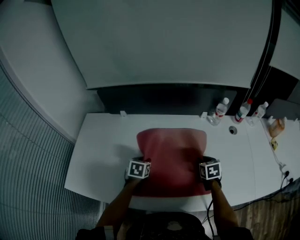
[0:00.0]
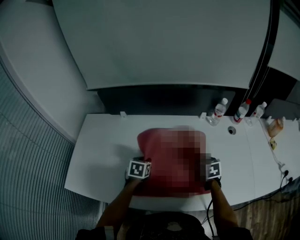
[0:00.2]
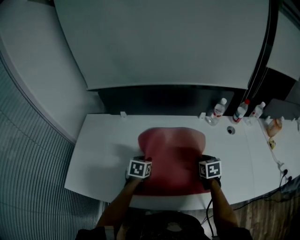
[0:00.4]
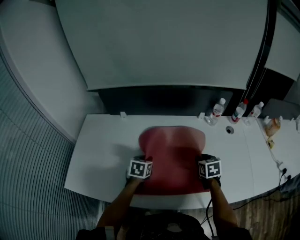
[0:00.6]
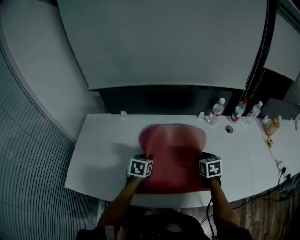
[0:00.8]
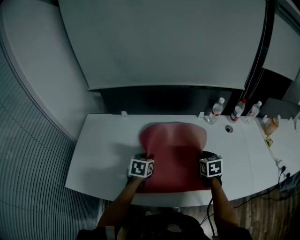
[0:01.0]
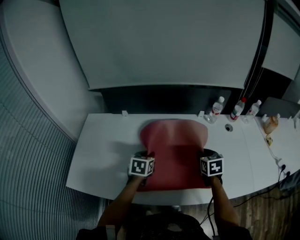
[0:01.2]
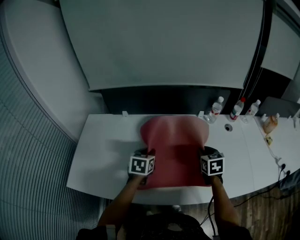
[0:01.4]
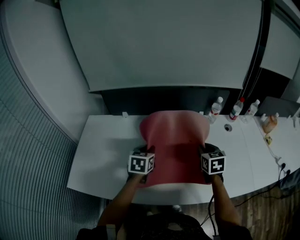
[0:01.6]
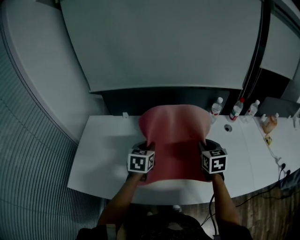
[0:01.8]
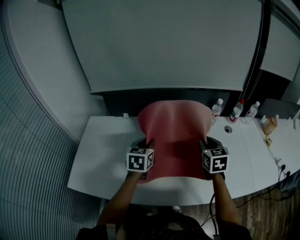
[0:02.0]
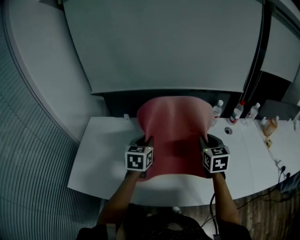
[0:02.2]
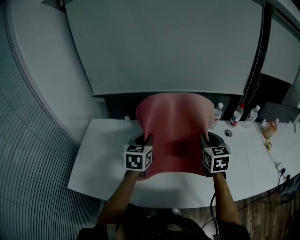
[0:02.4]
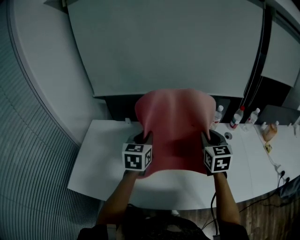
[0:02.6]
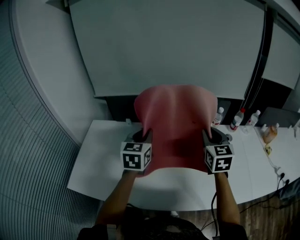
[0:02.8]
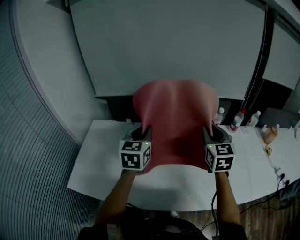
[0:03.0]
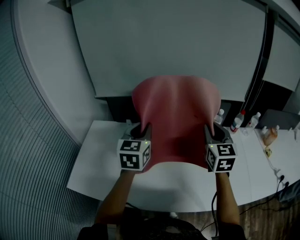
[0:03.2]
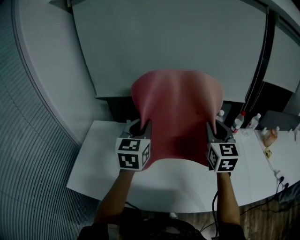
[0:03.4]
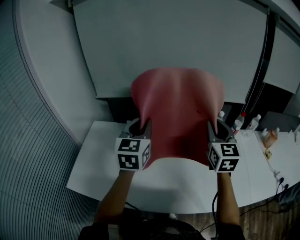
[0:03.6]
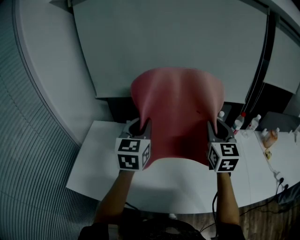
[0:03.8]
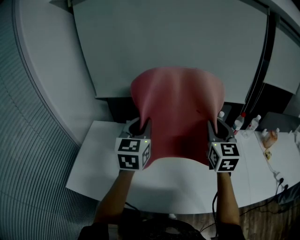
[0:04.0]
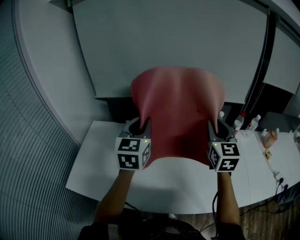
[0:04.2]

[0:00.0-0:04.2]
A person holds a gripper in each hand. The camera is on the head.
0:00.0 to 0:01.4: The two grippers go approximately 10 cm upward.
0:01.4 to 0:02.8: The grippers both shift upward by roughly 20 cm. The right gripper changes its angle by roughly 30 degrees; the left gripper rotates roughly 20 degrees.
0:02.8 to 0:04.2: Both grippers travel together upward, about 10 cm.

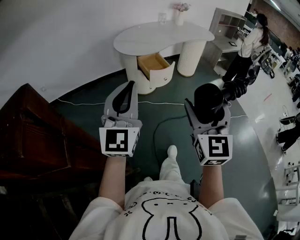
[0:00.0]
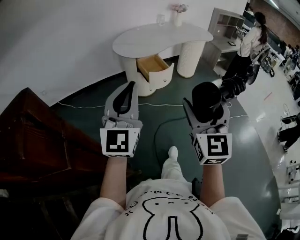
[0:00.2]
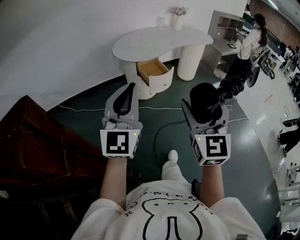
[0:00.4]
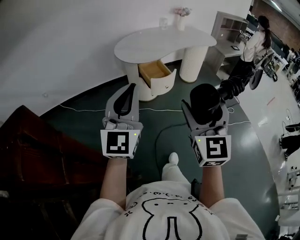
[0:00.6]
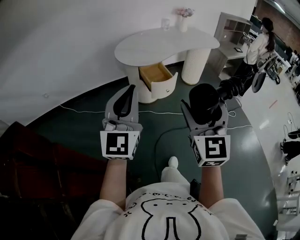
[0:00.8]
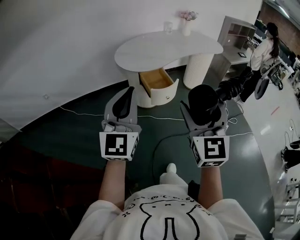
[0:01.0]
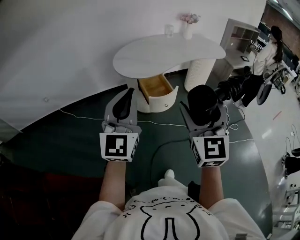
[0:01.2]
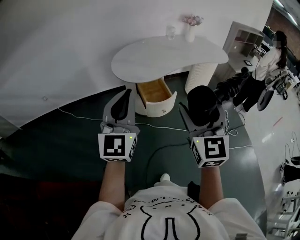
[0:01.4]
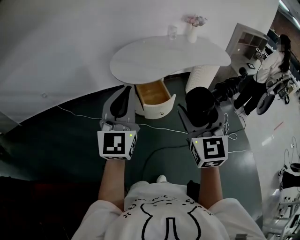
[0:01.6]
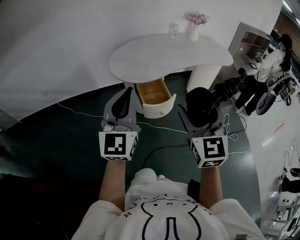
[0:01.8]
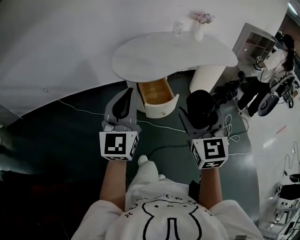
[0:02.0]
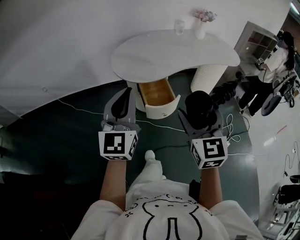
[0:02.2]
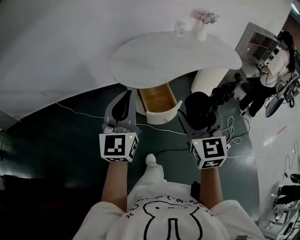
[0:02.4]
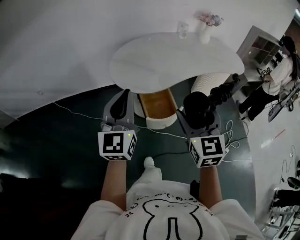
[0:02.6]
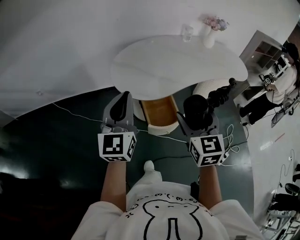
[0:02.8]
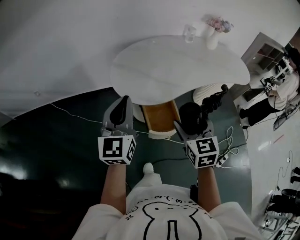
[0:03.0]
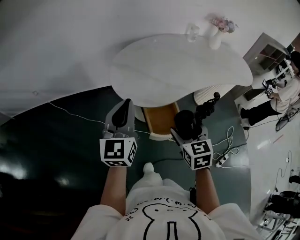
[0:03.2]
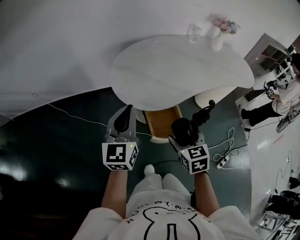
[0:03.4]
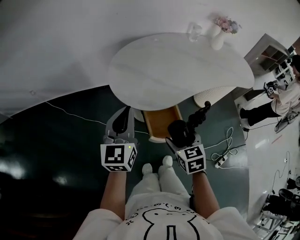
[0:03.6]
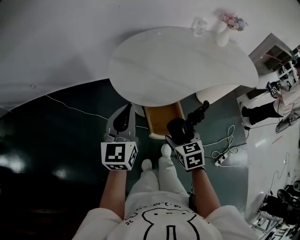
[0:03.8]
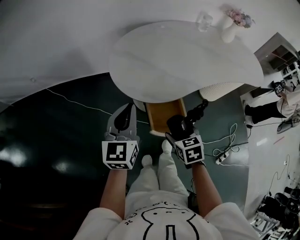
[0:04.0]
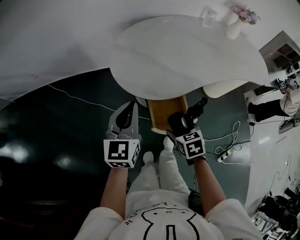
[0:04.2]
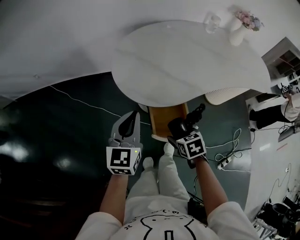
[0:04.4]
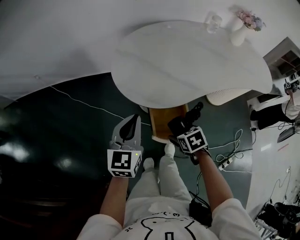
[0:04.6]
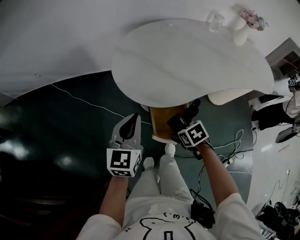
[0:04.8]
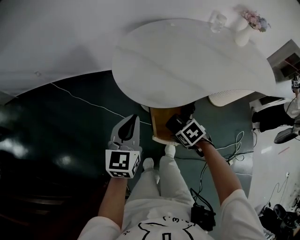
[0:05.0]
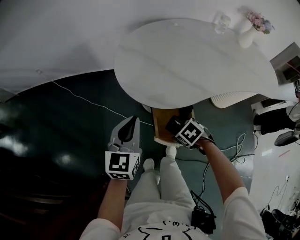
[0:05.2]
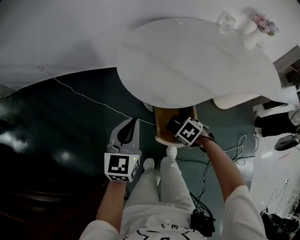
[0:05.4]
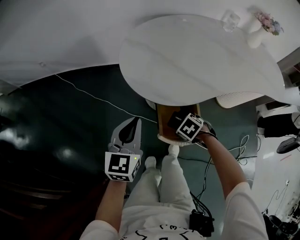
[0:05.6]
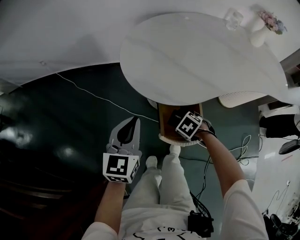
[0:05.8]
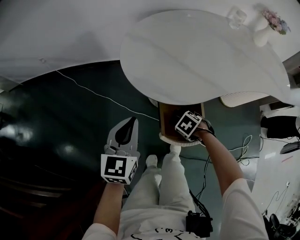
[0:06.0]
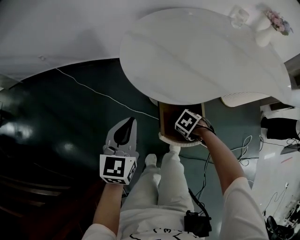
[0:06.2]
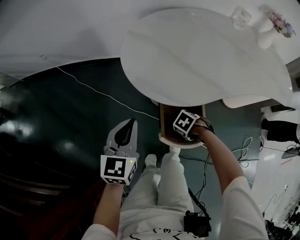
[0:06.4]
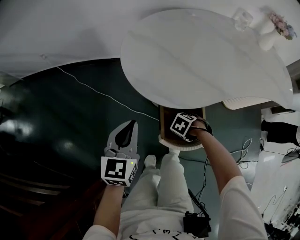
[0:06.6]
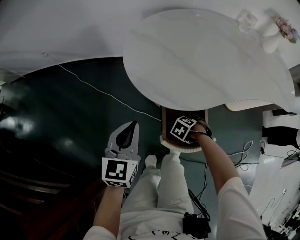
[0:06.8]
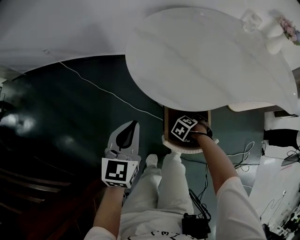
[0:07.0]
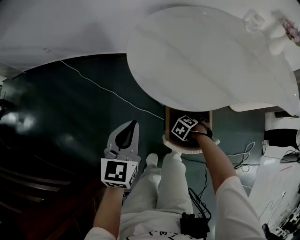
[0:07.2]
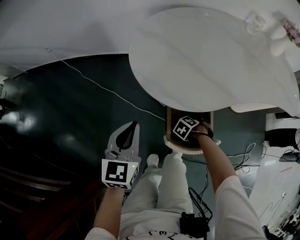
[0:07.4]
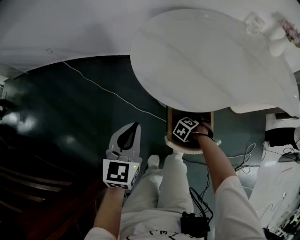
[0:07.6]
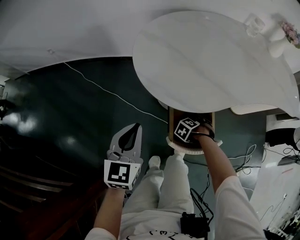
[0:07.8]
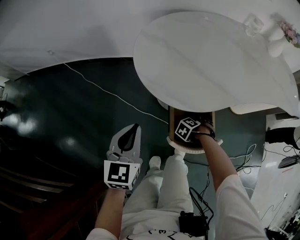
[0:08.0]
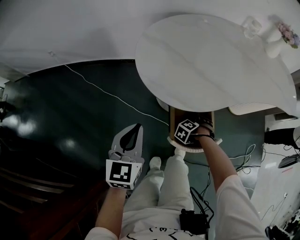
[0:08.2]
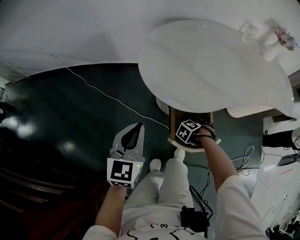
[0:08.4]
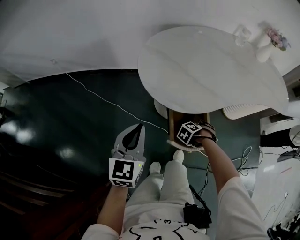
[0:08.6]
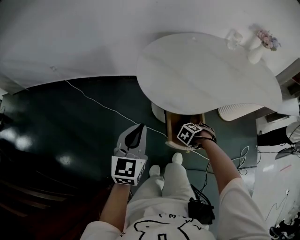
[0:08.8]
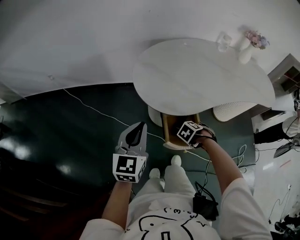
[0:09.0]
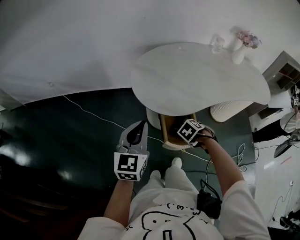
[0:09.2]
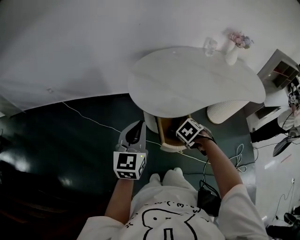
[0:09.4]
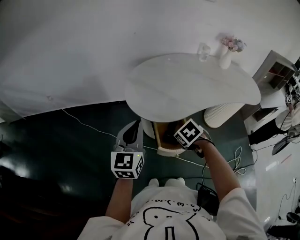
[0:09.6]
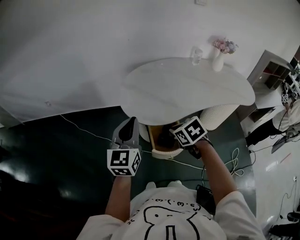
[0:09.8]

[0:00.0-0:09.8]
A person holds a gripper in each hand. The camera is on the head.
0:00.0 to 0:01.4: The grippers both shift forward by about 30 cm.
0:01.4 to 0:02.8: The right gripper moves forward and downward, approximately 25 cm. The left gripper goes some 20 cm forward.
0:02.8 to 0:04.2: The left gripper moves downward and forward, roughly 20 cm; the right gripper moves downward, approximately 25 cm, and angles its fingers downward, by approximately 40 degrees.
0:04.2 to 0:05.6: Both grippers move downward, roughly 10 cm. The right gripper turns by some 50 degrees.
0:05.6 to 0:07.0: The right gripper is displaced downward by roughly 10 cm, and turns by approximately 20 degrees.
0:07.0 to 0:08.4: The left gripper changes place by roughly 5 cm.
0:08.4 to 0:09.8: The right gripper moves upward, some 35 cm, turns by about 60 degrees, and closes its fingers. The left gripper is displaced upward by roughly 20 cm, and rotates approximately 20 degrees.

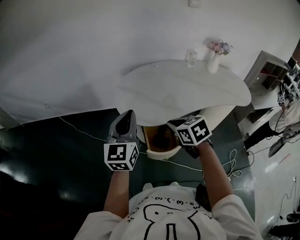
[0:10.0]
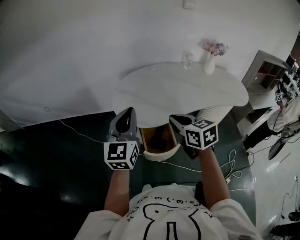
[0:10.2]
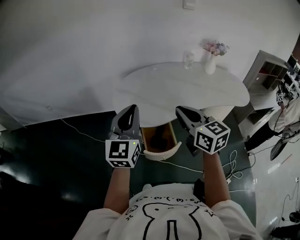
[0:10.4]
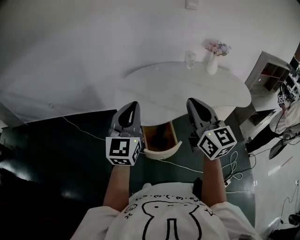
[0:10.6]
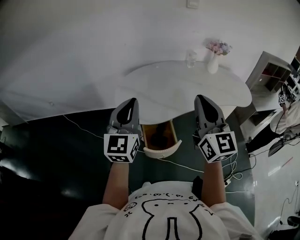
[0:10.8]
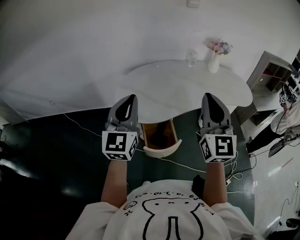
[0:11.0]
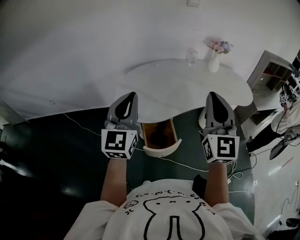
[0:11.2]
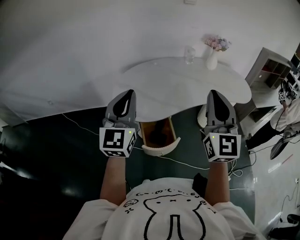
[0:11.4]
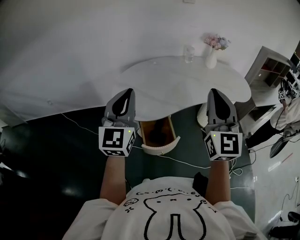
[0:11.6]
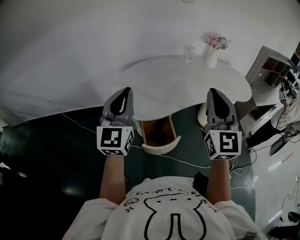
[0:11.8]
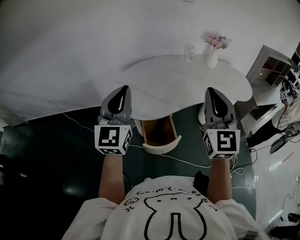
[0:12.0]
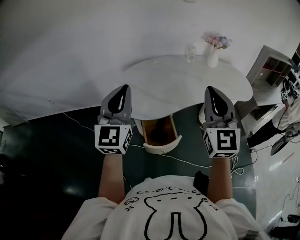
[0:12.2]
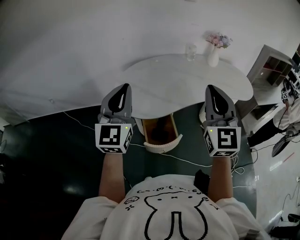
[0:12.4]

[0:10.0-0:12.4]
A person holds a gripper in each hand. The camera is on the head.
0:10.0 to 0:11.2: The left gripper travels upward and to the right by approximately 10 cm, while the right gripper travels upward and to the right by approximately 25 cm, and angles its fingers upward, by some 60 degrees.
0:11.2 to 0:12.4: There are only small adjustments of the grippers.

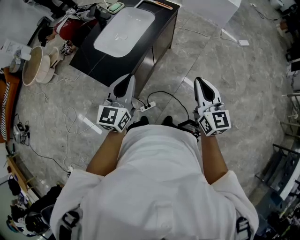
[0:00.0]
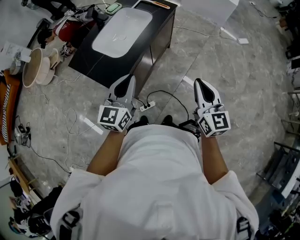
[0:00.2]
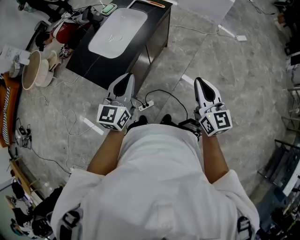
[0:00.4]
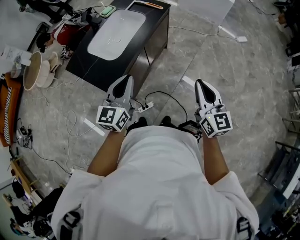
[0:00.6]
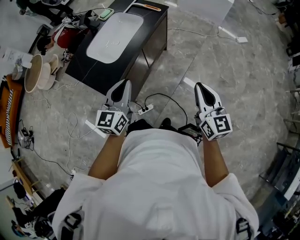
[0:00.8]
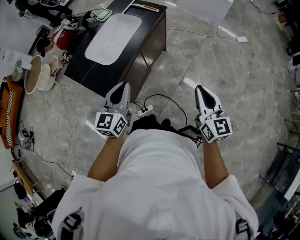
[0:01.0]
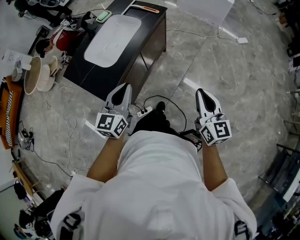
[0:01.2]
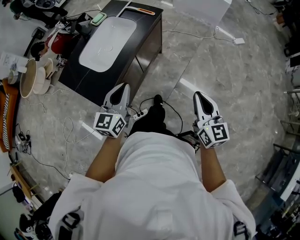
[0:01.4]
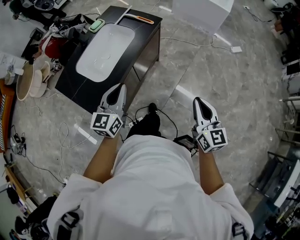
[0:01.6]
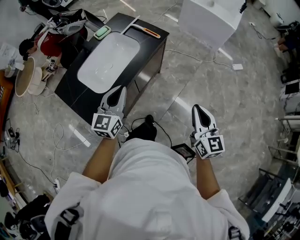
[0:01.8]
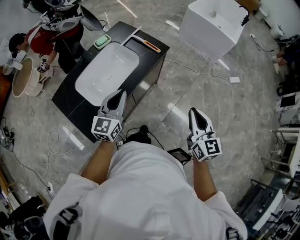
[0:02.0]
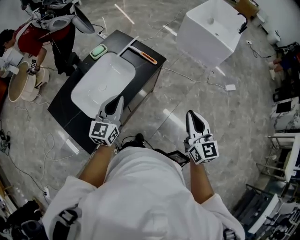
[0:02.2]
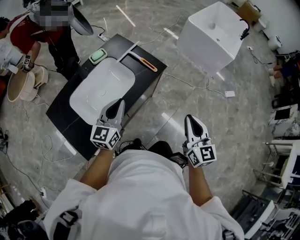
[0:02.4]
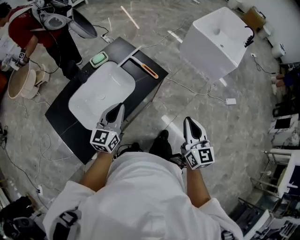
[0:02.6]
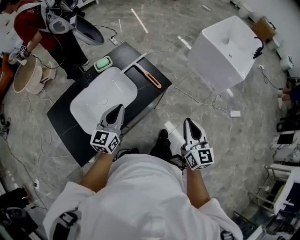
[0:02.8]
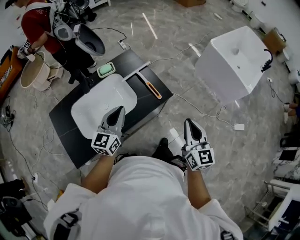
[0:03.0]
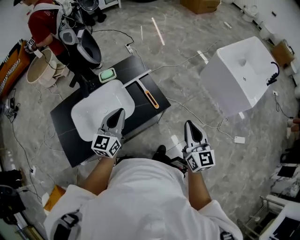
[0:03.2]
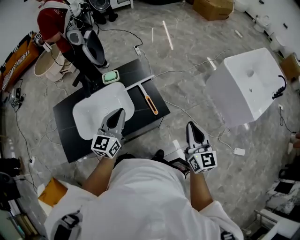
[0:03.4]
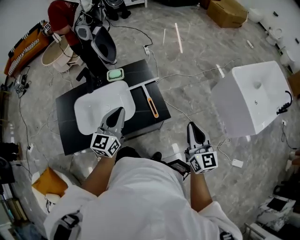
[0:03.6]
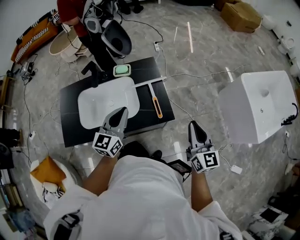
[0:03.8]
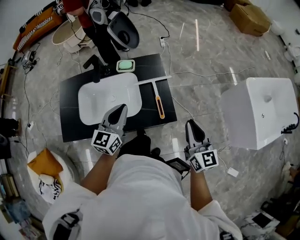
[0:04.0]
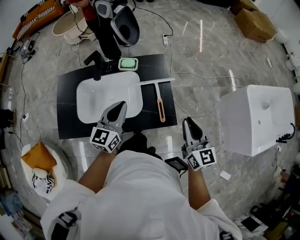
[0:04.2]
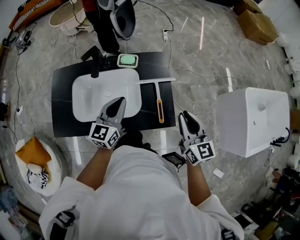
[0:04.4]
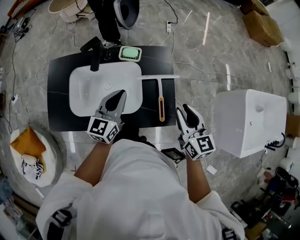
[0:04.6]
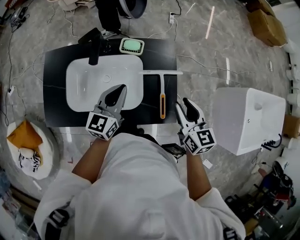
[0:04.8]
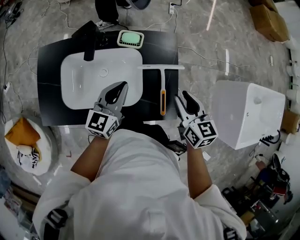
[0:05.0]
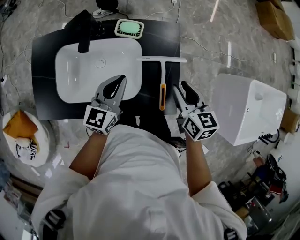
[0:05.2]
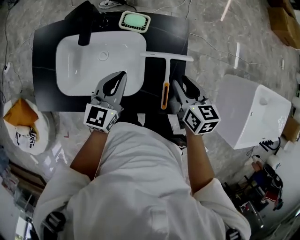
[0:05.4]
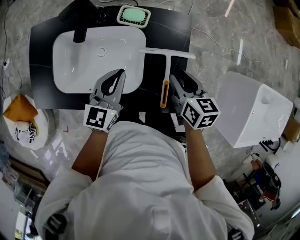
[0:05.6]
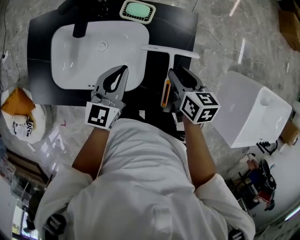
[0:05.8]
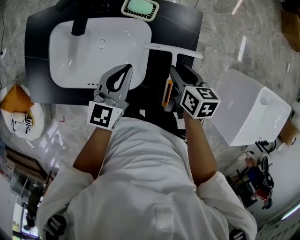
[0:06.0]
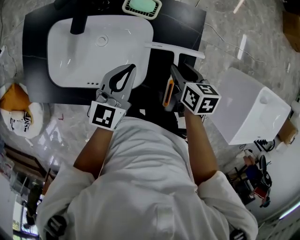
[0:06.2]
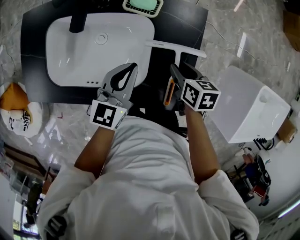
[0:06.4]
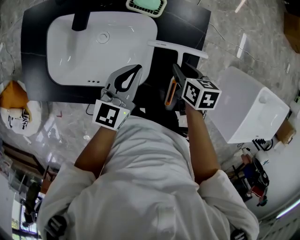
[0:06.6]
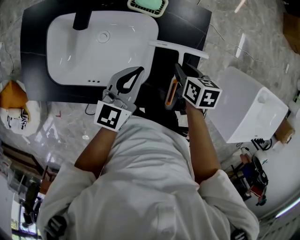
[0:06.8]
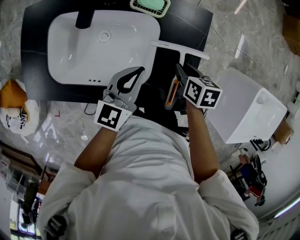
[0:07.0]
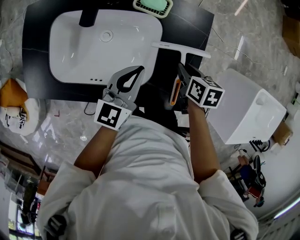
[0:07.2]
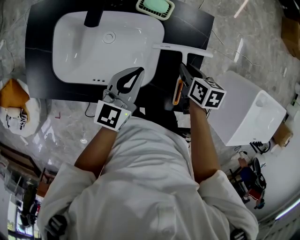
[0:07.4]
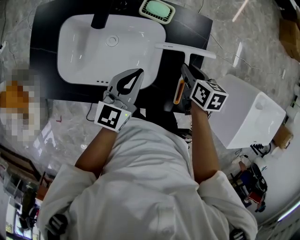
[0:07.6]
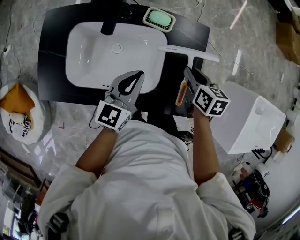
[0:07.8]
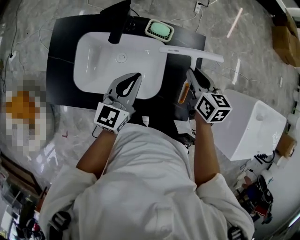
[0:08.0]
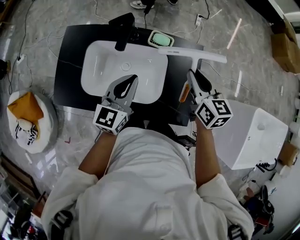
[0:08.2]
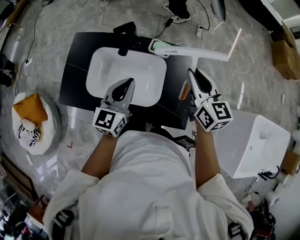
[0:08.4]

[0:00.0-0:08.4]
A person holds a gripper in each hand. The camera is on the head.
0:00.0 to 0:01.4: The right gripper moves to the right, about 10 cm; the left gripper goes approximately 10 cm to the right and forward.
0:01.4 to 0:02.8: The two grippers go about 35 cm forward.
0:02.8 to 0:04.2: The left gripper changes place by approximately 10 cm, and turns by about 30 degrees. Meanwhile the right gripper ends up roughly 25 cm from where it was, and swivels roughly 40 degrees.
0:04.2 to 0:05.6: The right gripper travels forward and downward by roughly 25 cm, angles its fingers downward, by approximately 30 degrees, and opens its fingers; the left gripper goes roughly 15 cm downward and forward.
0:05.6 to 0:07.0: The right gripper goes approximately 10 cm downward, and swivels about 20 degrees.
0:07.0 to 0:08.4: The left gripper travels upward and to the left by some 20 cm. Meanwhile the right gripper goes roughly 30 cm upward, and angles its fingers upward, by roughly 50 degrees.
